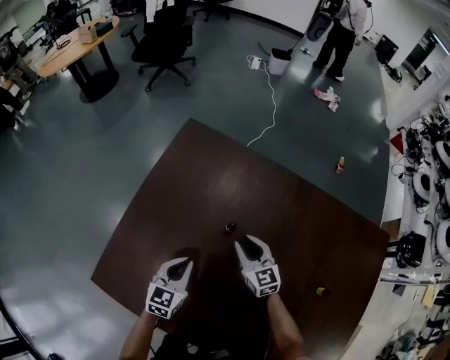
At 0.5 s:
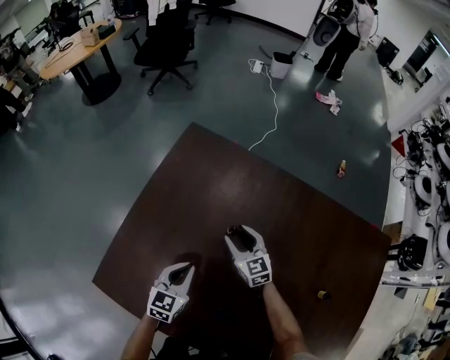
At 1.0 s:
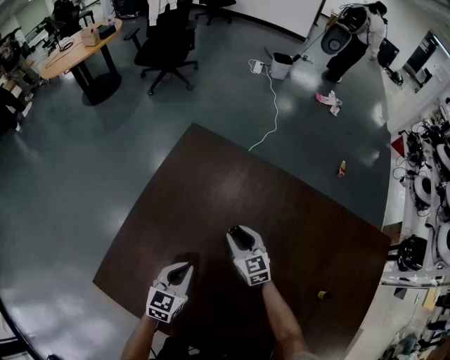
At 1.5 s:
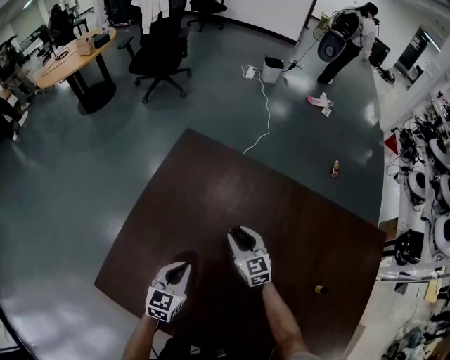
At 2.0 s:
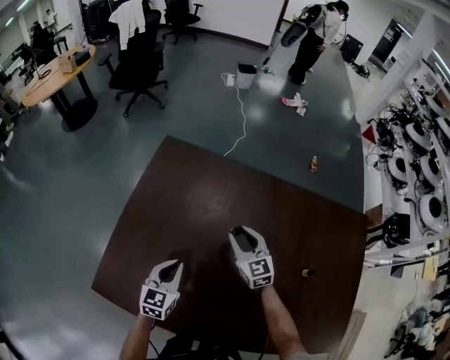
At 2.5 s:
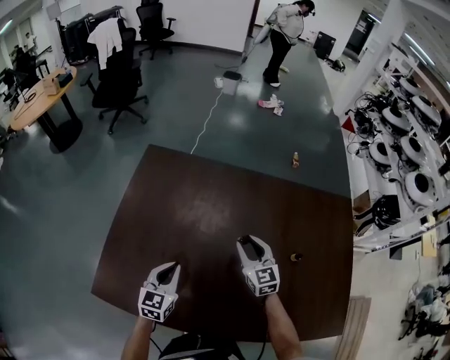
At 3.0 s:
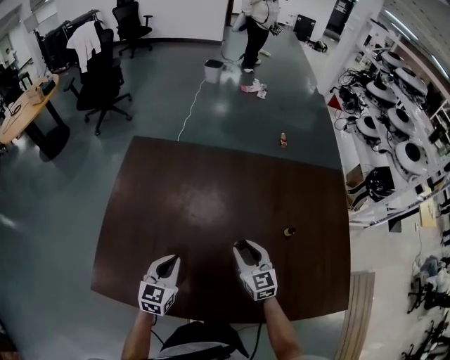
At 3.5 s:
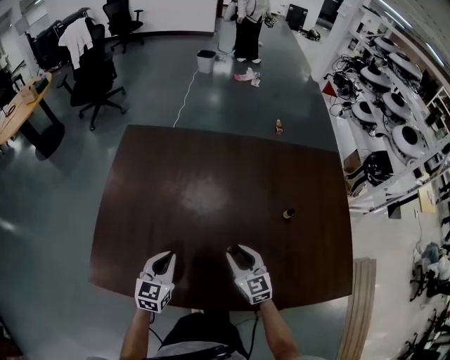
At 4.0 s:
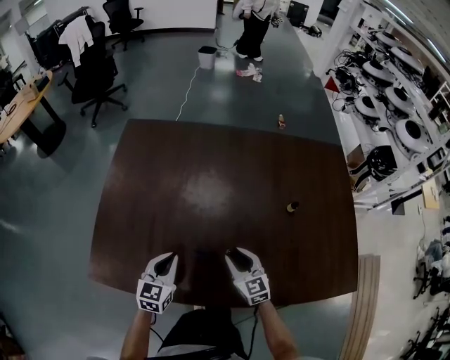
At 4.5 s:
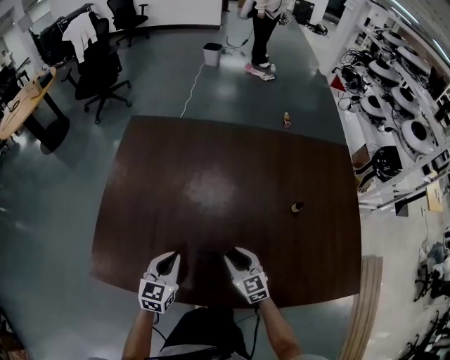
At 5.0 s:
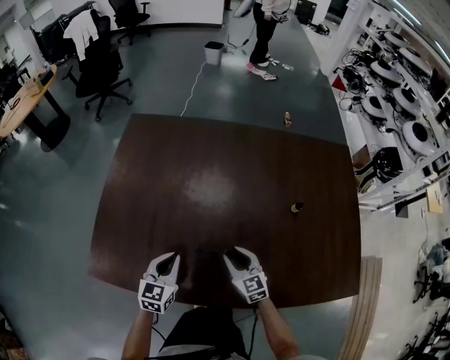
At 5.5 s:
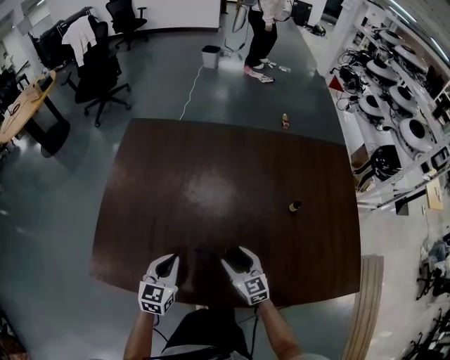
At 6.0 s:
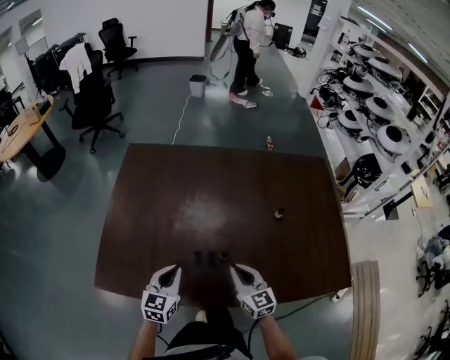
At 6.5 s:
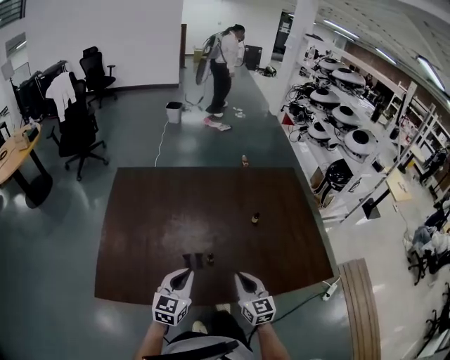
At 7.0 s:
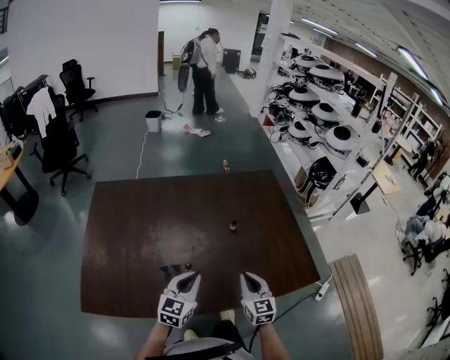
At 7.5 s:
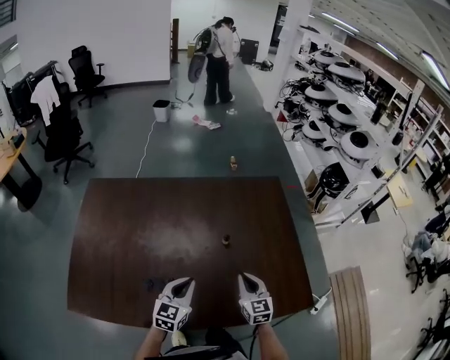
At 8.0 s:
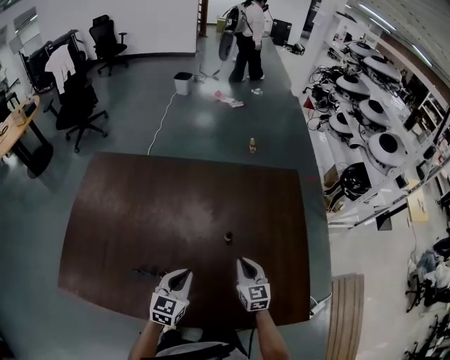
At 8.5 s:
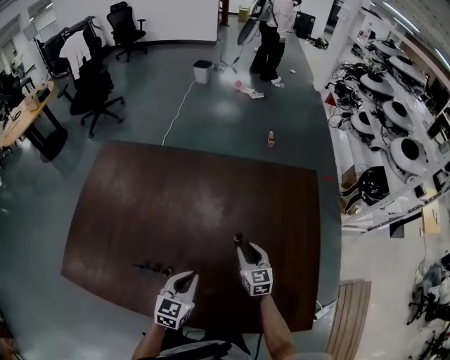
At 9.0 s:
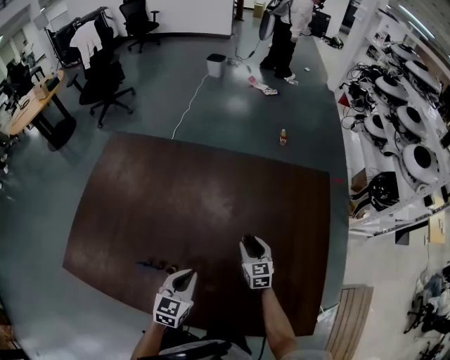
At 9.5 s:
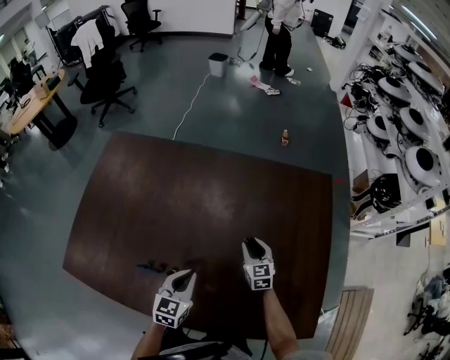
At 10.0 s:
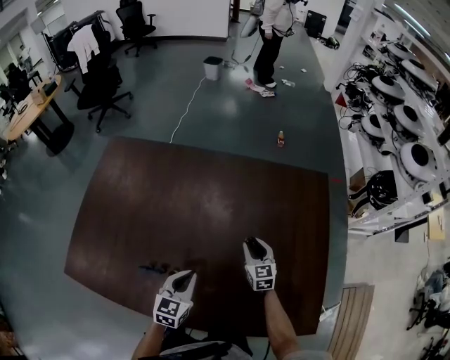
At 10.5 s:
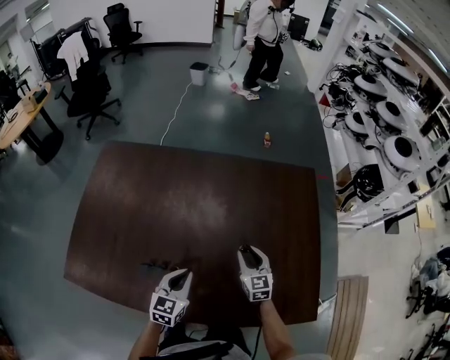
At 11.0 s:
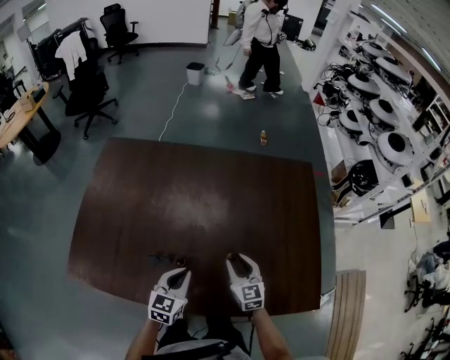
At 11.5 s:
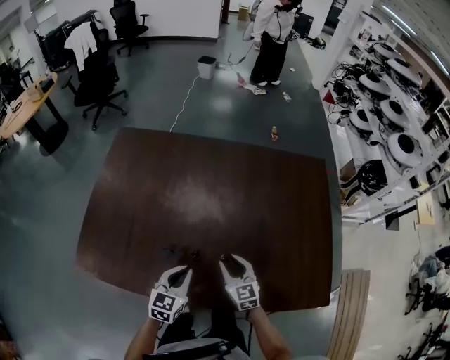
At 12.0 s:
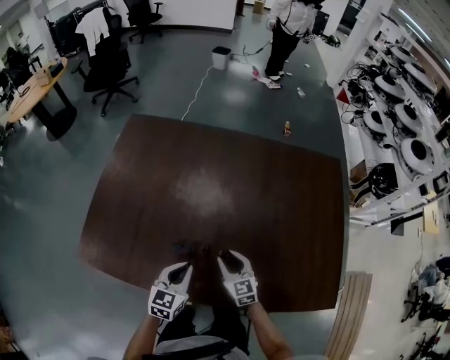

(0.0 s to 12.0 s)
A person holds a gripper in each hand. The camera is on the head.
0.0 s - 2.0 s: Both grippers travel together upward, approximately 5 cm.
2.0 s - 4.0 s: The left gripper heads backward, covering roughly 10 cm. The right gripper heads backward, covering roughly 25 cm.
4.0 s - 6.0 s: The left gripper changes place by roughly 5 cm. Meanwhile the right gripper moves upward, about 10 cm, and closes its fingers.
6.0 s - 8.0 s: Both grippers travel together to the right and forward, approximately 25 cm.
8.0 s - 10.0 s: The right gripper moves forward and downward, some 10 cm, and opens its fingers.
10.0 s - 12.0 s: The right gripper is displaced to the left and backward by some 25 cm. The left gripper goes some 15 cm to the left and backward.

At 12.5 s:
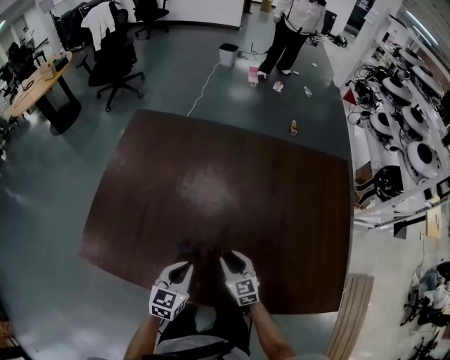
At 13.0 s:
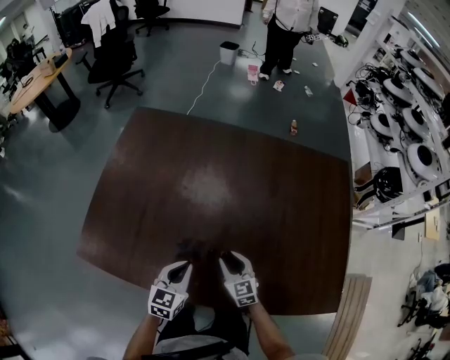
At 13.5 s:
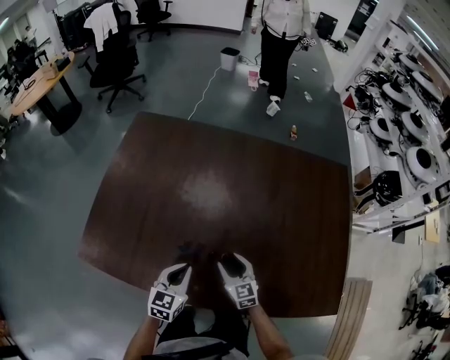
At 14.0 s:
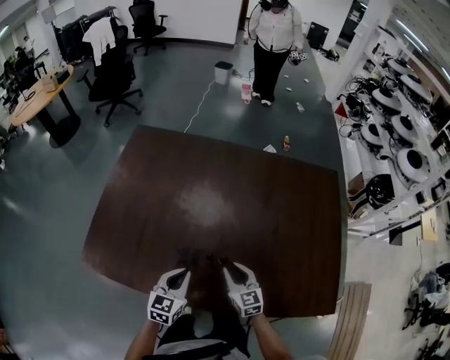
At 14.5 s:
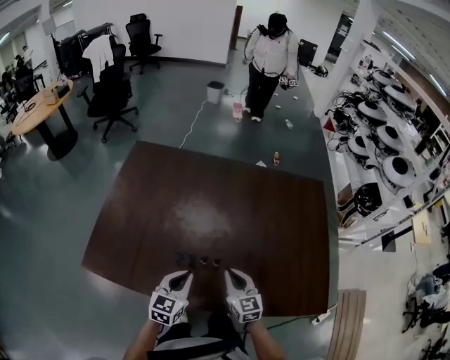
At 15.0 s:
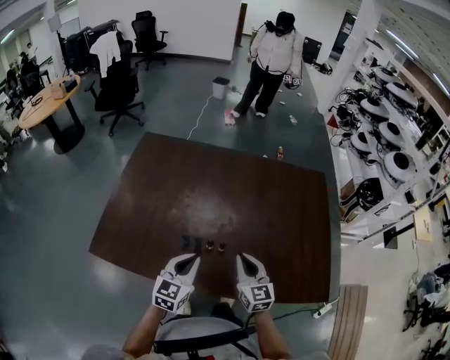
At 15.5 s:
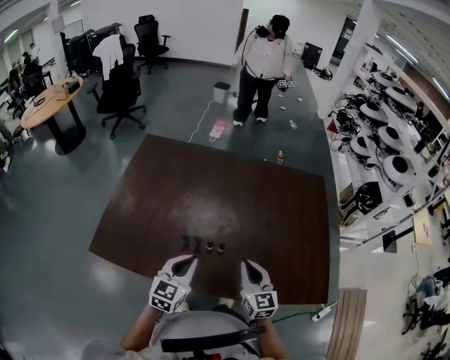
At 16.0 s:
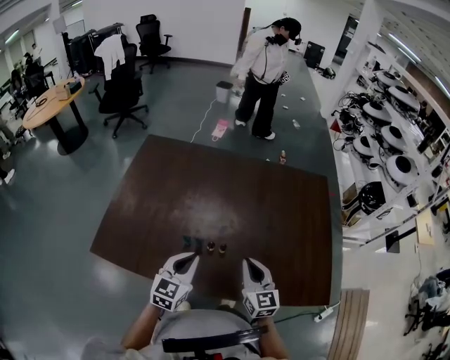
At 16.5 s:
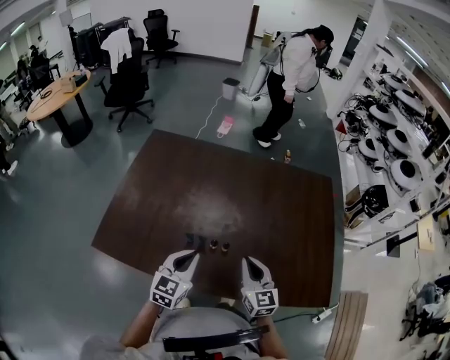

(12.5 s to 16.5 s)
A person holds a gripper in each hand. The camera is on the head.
12.5 s - 14.5 s: The right gripper is displaced upward by roughly 10 cm, and closes; the left gripper is displaced upward by about 5 cm.
14.5 s - 16.5 s: Both grippers travel together upward, approximately 5 cm.

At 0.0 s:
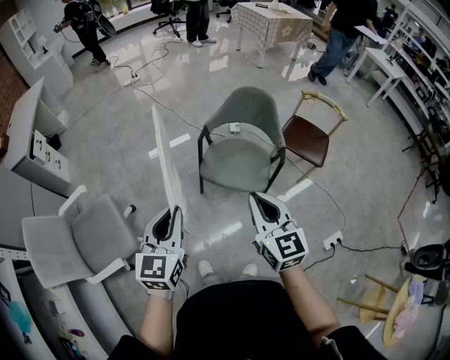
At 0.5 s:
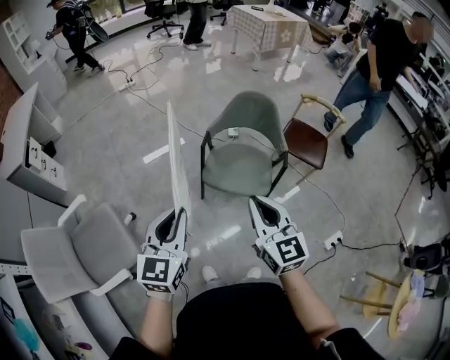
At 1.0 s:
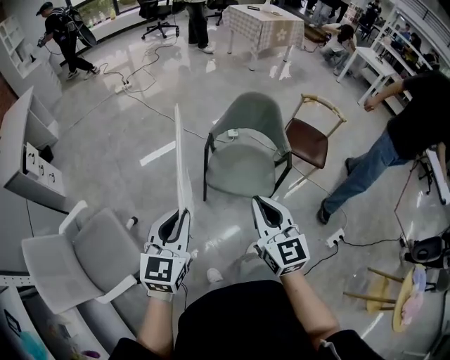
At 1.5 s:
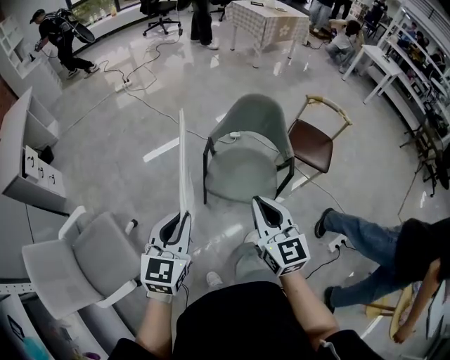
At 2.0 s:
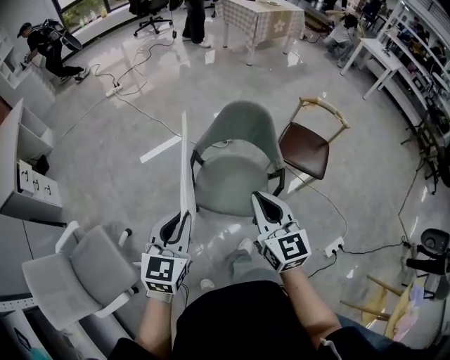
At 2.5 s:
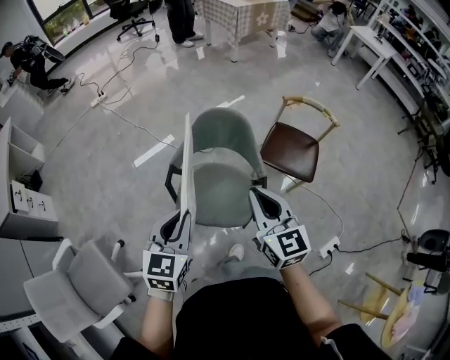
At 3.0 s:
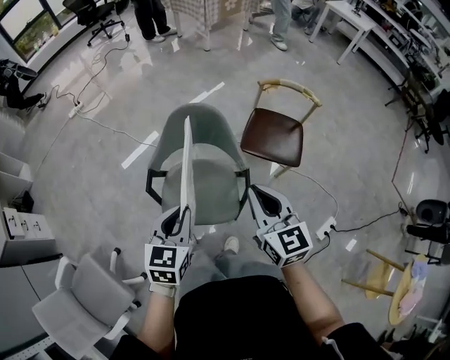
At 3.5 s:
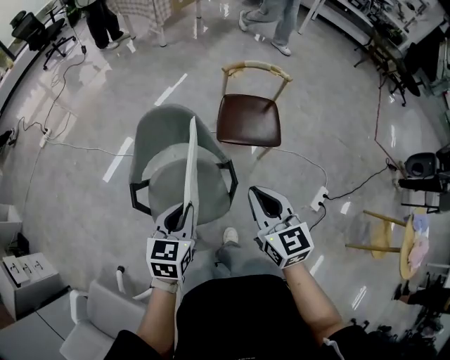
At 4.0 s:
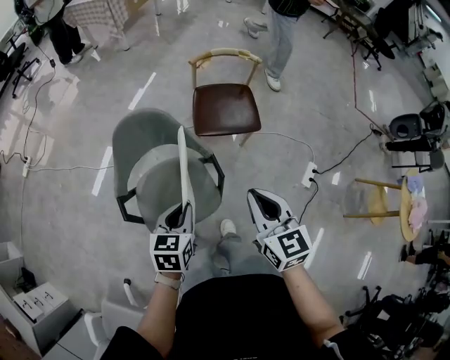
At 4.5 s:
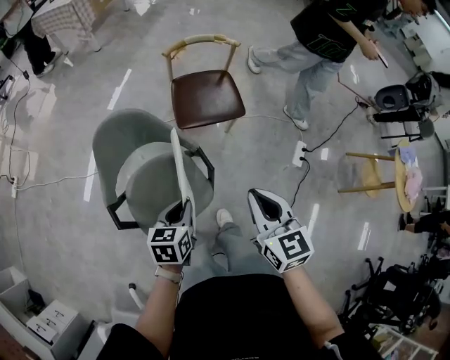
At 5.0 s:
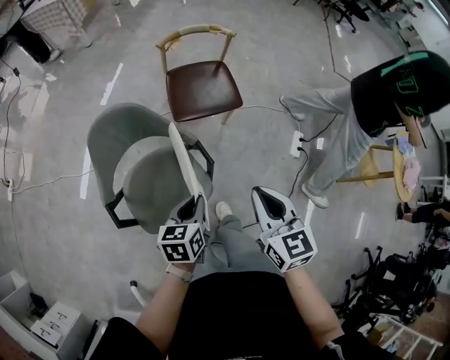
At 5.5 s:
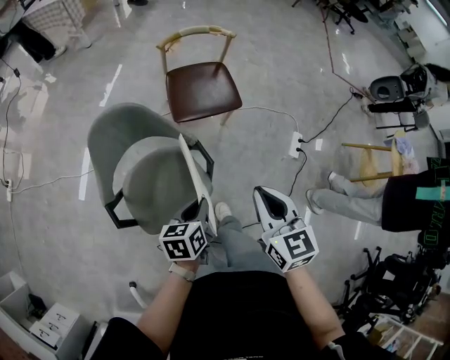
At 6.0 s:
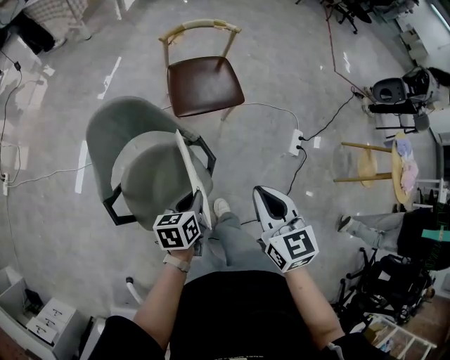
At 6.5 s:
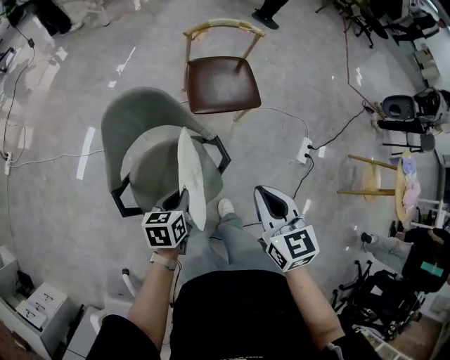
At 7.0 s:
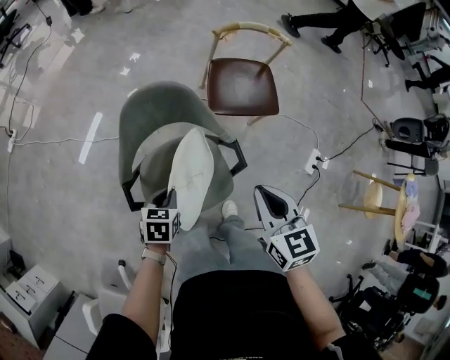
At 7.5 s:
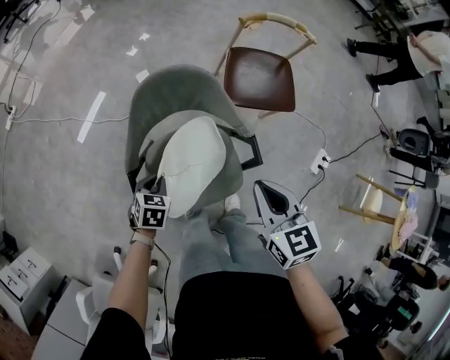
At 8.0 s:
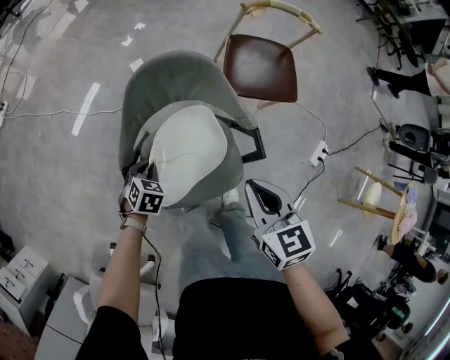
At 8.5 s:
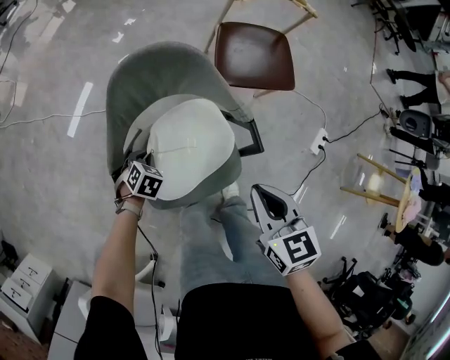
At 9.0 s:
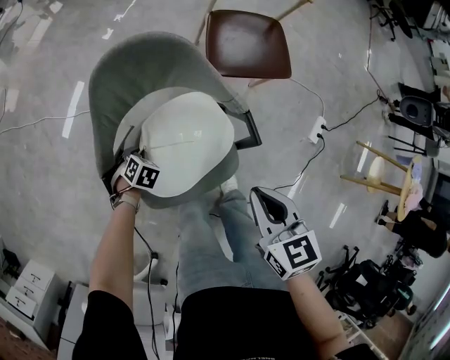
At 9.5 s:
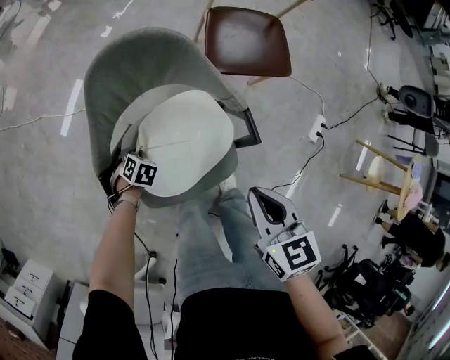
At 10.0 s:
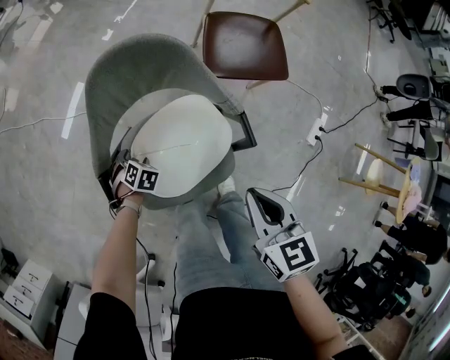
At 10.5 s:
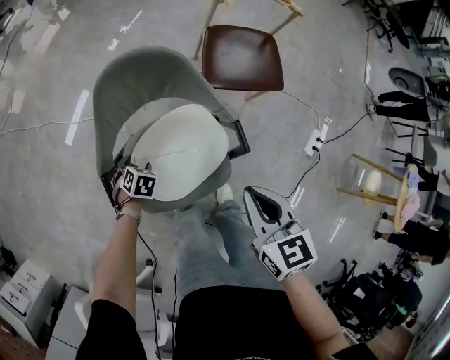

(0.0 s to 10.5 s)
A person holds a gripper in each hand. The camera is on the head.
0.0 s - 2.0 s: Both grippers move forward, approximately 15 cm.
2.0 s - 4.0 s: The right gripper changes place by approximately 20 cm, and rotates some 30 degrees. The left gripper changes place by roughly 30 cm, and rotates roughly 40 degrees.
4.0 s - 6.5 s: The left gripper moves downward, some 10 cm.
6.5 s - 8.5 s: The left gripper heads downward and to the left, covering roughly 25 cm, and turns by approximately 50 degrees; the right gripper goes approximately 15 cm downward and to the left.
8.5 s - 10.5 s: The left gripper opens its fingers.
